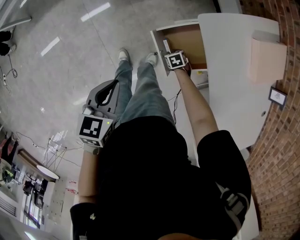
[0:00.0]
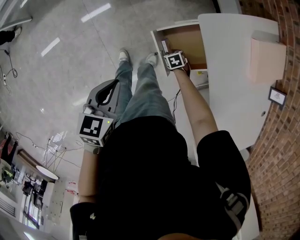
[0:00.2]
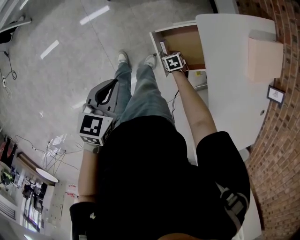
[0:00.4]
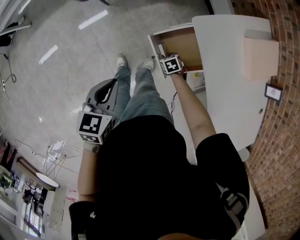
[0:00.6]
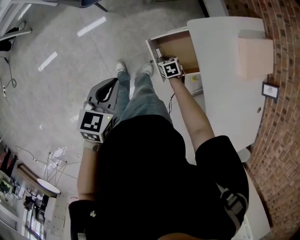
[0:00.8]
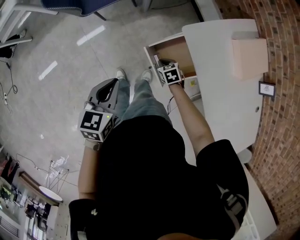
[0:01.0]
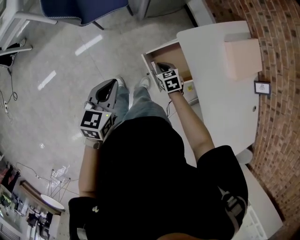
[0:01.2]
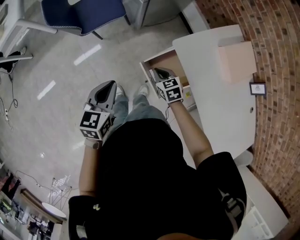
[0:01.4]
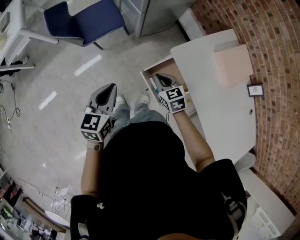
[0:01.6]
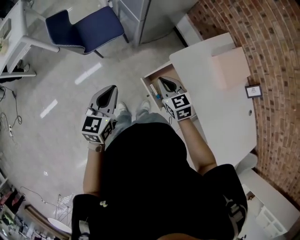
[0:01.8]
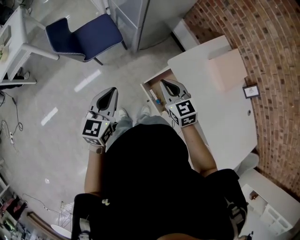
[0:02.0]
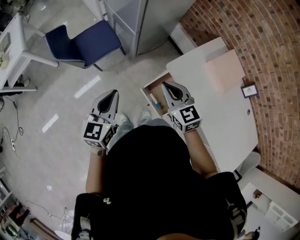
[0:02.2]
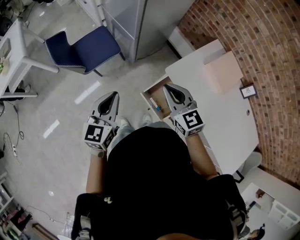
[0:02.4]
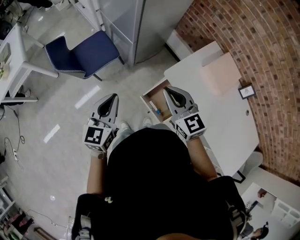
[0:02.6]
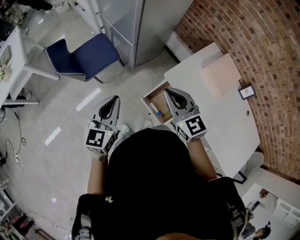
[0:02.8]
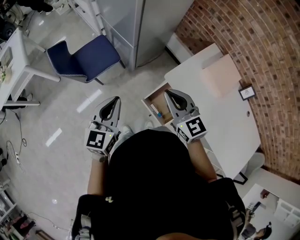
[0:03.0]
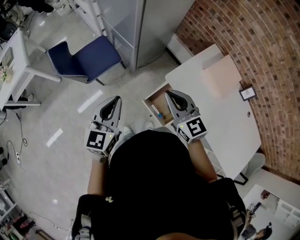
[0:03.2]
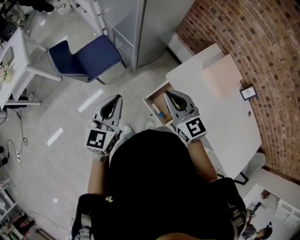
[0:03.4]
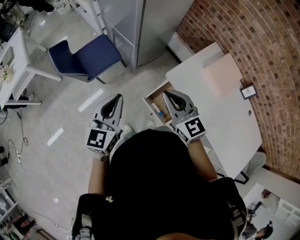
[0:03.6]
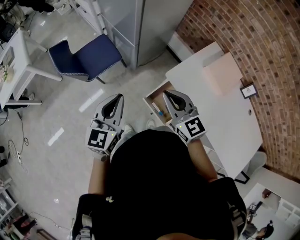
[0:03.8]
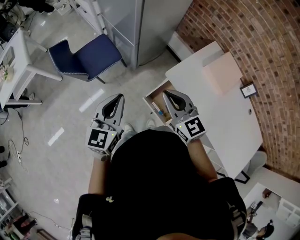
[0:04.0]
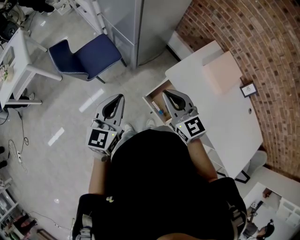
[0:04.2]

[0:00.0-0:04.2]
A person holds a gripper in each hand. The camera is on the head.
0:00.0 to 0:01.4: The left gripper moves upward, some 5 cm. The right gripper travels upward by roughly 30 cm, changes its angle by some 30 degrees, and closes.
0:01.4 to 0:02.8: The right gripper moves upward, some 30 cm, and points its fingers roughly 30 degrees further upward. Meanwhile the left gripper goes roughly 15 cm upward and forward, and changes its angle by some 20 degrees.
0:02.8 to 0:04.2: The grippers make only small movements.

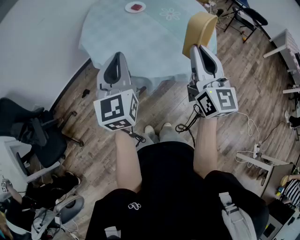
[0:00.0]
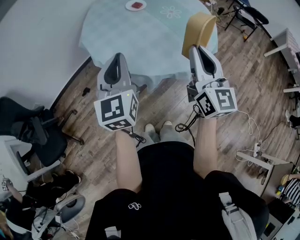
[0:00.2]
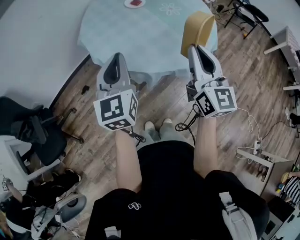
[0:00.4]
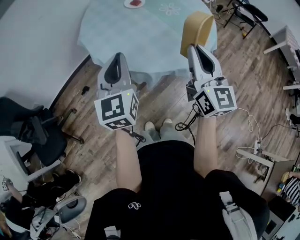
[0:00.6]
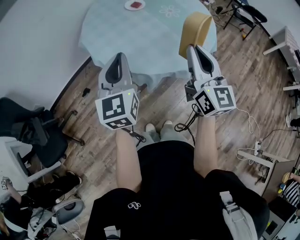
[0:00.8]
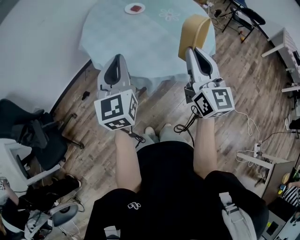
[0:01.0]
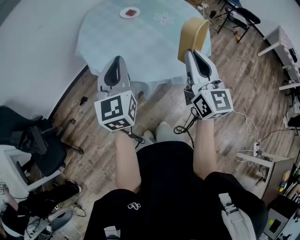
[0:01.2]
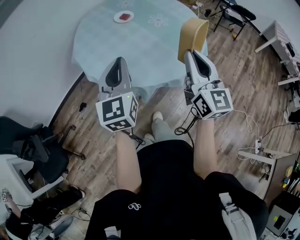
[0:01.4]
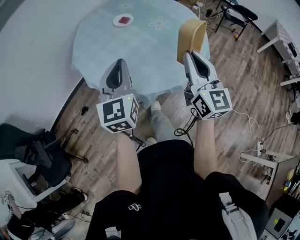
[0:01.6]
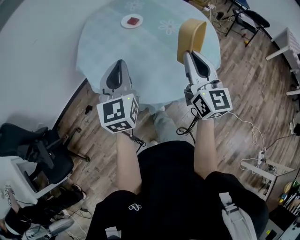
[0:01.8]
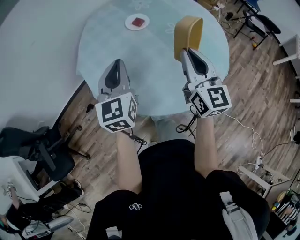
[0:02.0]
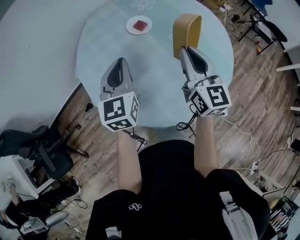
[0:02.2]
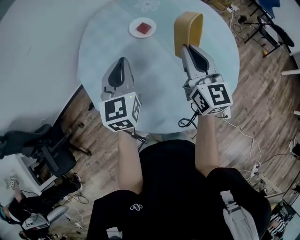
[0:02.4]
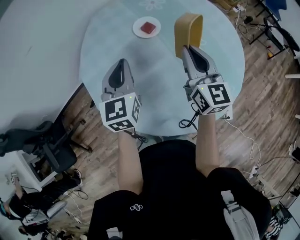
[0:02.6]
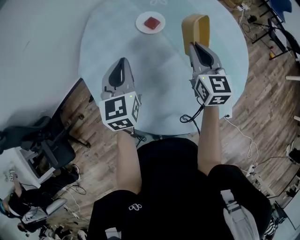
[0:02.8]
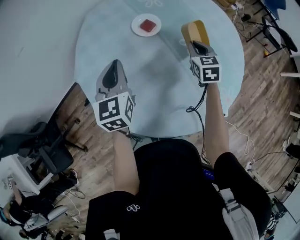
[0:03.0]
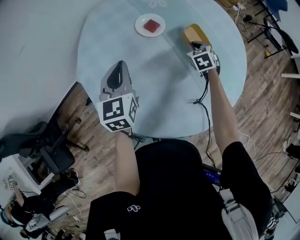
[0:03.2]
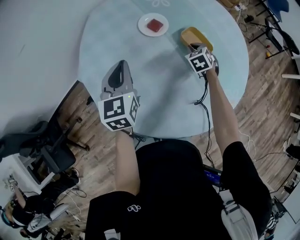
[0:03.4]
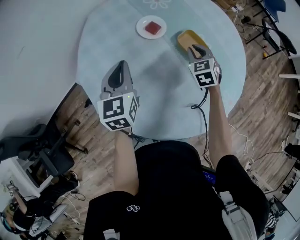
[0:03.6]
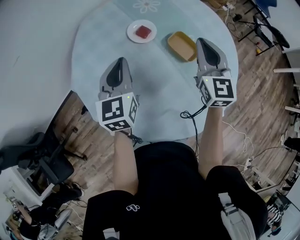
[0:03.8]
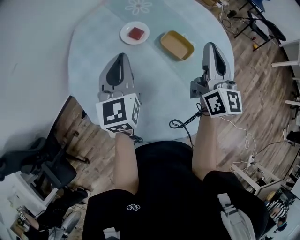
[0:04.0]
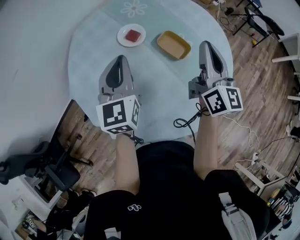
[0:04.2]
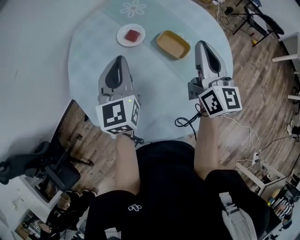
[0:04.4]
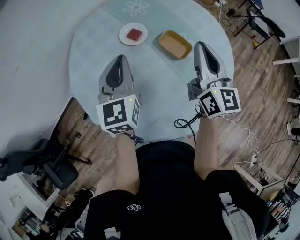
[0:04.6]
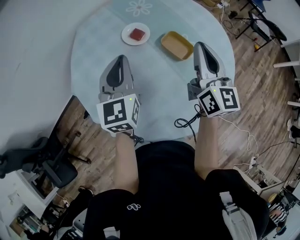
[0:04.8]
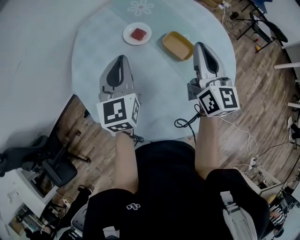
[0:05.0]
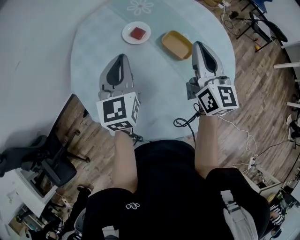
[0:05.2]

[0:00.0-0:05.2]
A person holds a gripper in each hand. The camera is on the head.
0:00.0 to 0:01.8: Both grippers move forward, approximately 15 cm.
0:01.8 to 0:03.4: The left gripper is displaced forward by about 30 cm. The right gripper travels forward and downward by about 50 cm, and angles its fingers downward, by roughly 60 degrees.
0:03.4 to 0:05.2: The left gripper heads upward and to the right, covering roughly 10 cm. The right gripper is displaced upward by some 30 cm, and tilts its fingers approximately 60 degrees upward.

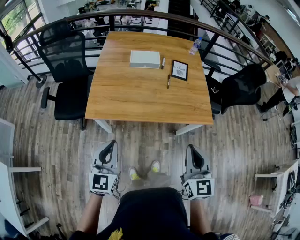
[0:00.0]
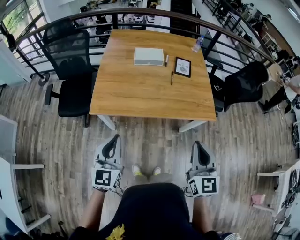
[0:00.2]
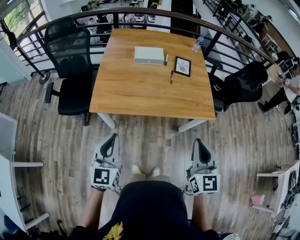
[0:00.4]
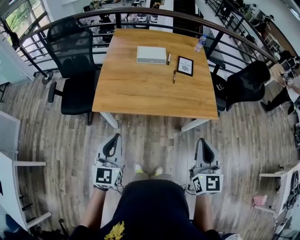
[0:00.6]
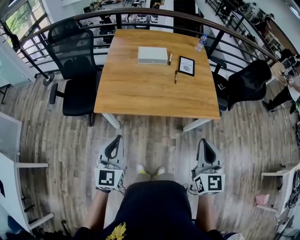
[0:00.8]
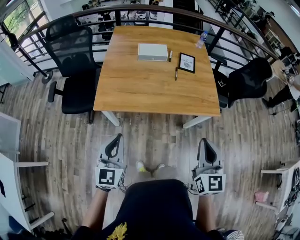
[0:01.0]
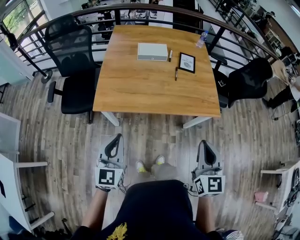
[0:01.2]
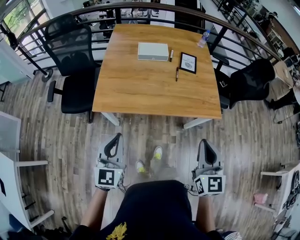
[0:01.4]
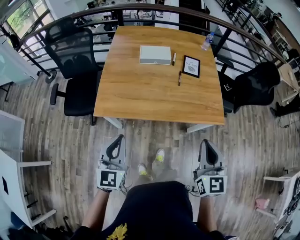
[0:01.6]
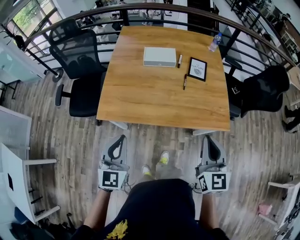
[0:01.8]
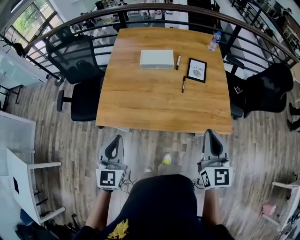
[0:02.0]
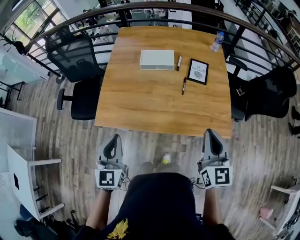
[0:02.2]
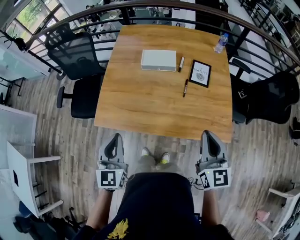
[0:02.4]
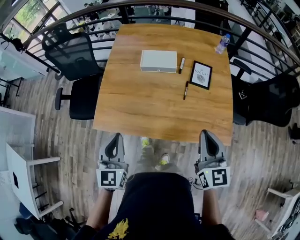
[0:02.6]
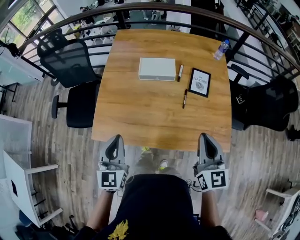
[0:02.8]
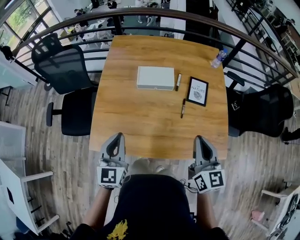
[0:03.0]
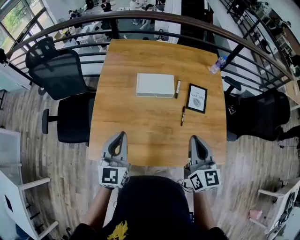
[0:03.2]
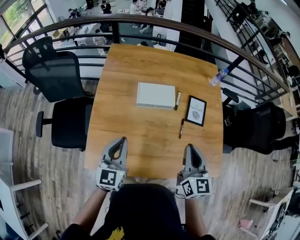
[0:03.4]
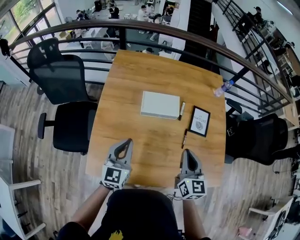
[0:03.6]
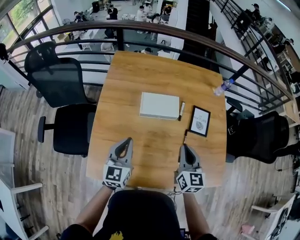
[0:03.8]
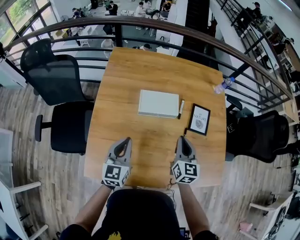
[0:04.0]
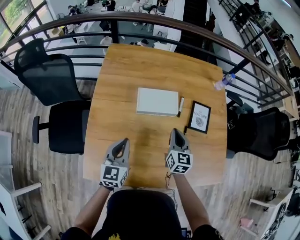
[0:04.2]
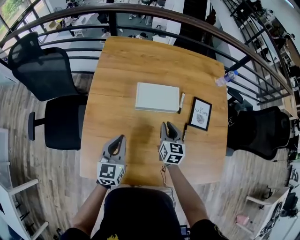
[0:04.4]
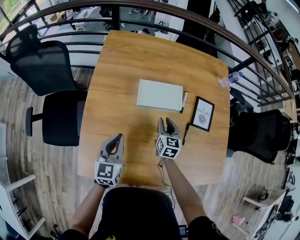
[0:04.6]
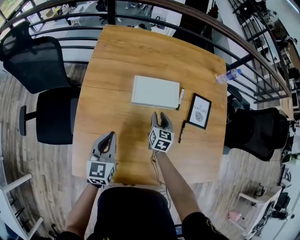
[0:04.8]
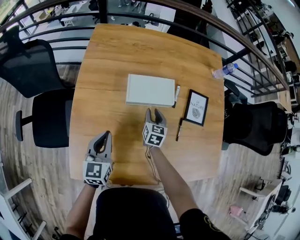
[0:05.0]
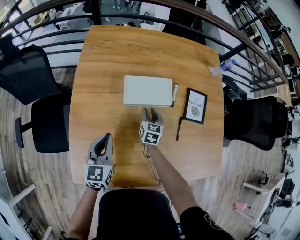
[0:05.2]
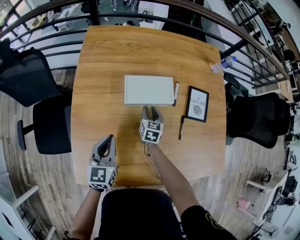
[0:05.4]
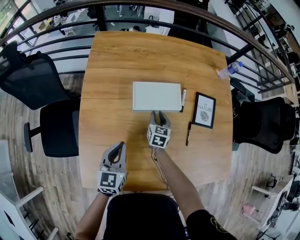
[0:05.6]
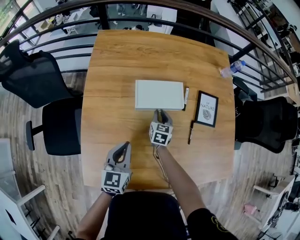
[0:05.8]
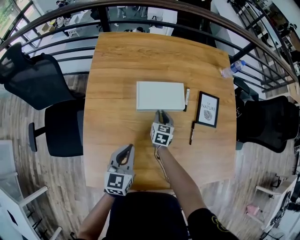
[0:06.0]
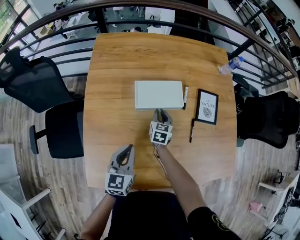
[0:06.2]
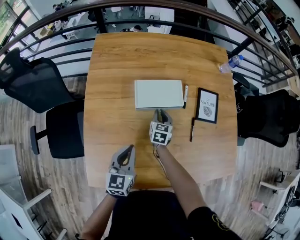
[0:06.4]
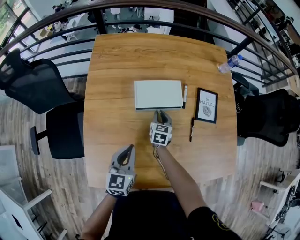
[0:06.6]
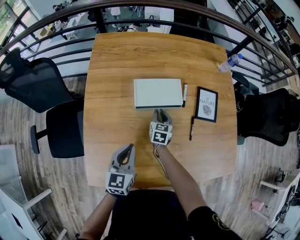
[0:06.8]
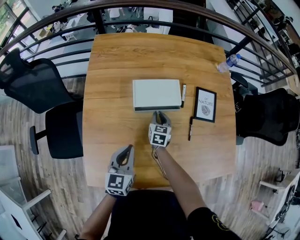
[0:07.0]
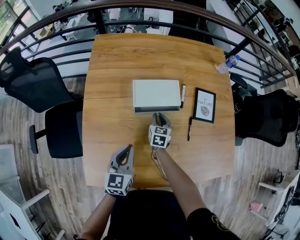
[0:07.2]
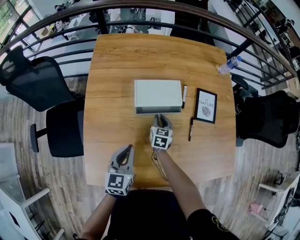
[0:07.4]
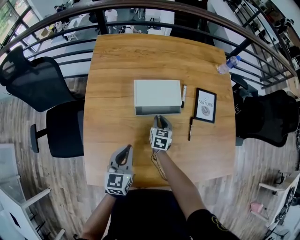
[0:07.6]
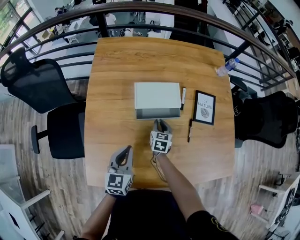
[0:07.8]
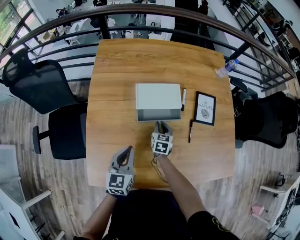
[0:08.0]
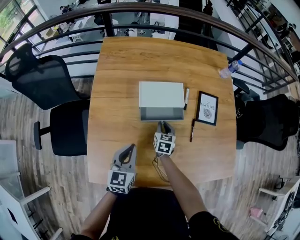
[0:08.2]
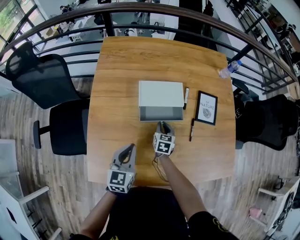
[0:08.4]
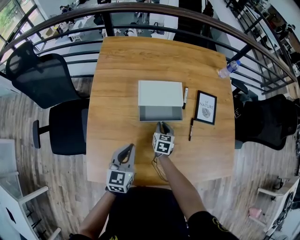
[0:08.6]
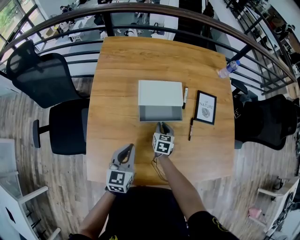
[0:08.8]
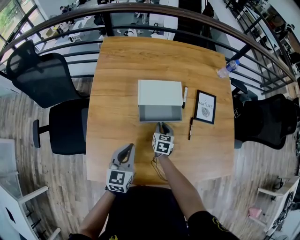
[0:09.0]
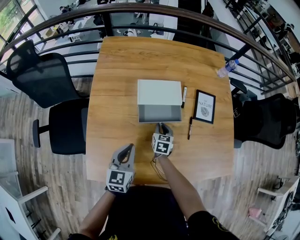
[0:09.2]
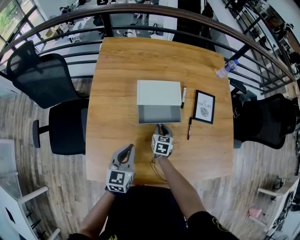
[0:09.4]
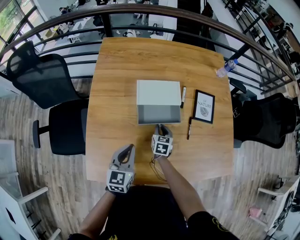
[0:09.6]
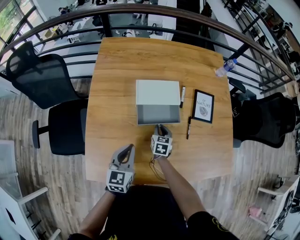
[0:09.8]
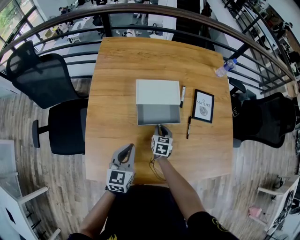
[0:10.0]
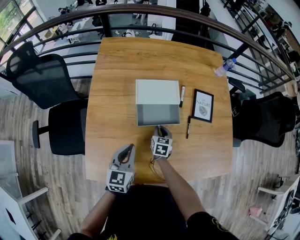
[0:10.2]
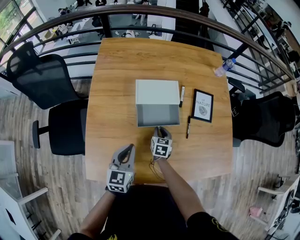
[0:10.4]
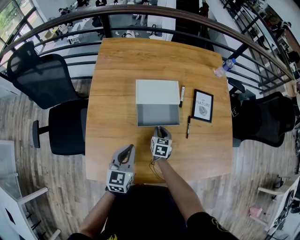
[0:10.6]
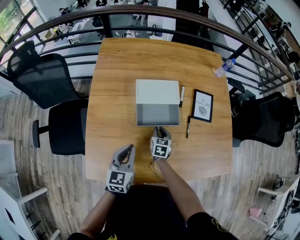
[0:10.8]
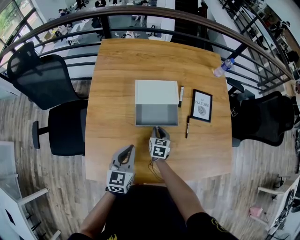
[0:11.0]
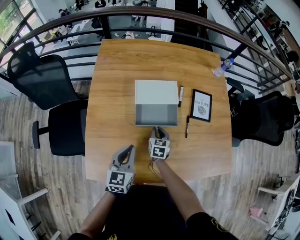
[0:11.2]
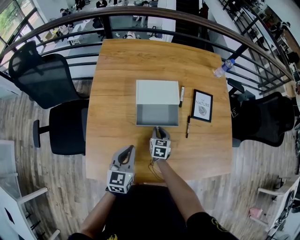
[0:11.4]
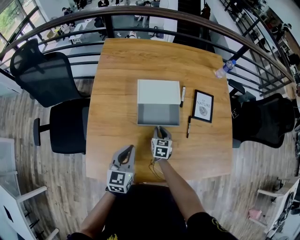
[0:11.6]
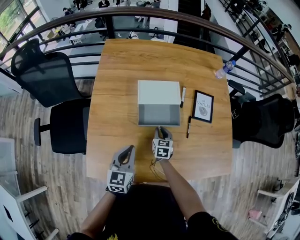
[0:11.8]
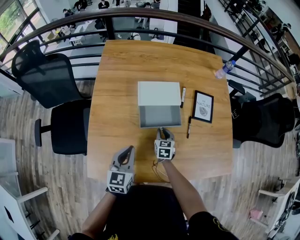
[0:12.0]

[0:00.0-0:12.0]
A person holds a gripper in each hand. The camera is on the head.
0:00.0 to 0:01.6: The grippers make only small movements.
0:01.6 to 0:03.0: The grippers both shift forward by some 30 cm.
0:03.0 to 0:04.4: The left gripper is displaced forward and downward by approximately 25 cm. The right gripper shifts roughly 40 cm forward, downward and to the left.
0:04.4 to 0:06.0: The right gripper travels downward and forward by roughly 15 cm, while the left gripper shifts by roughly 5 cm.
0:06.0 to 0:07.6: The grippers stay close to where they were, moving slightly.
0:07.6 to 0:09.0: The grippers move only a little.
0:09.0 to 0:12.0: The grippers stay close to where they were, moving slightly.

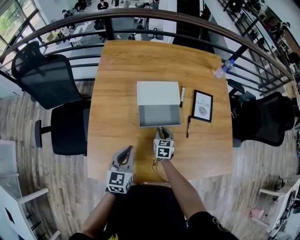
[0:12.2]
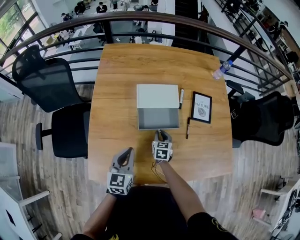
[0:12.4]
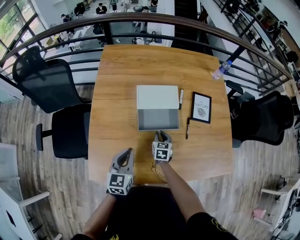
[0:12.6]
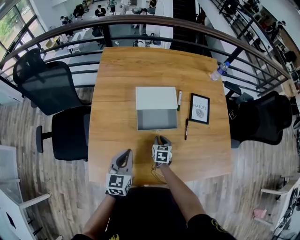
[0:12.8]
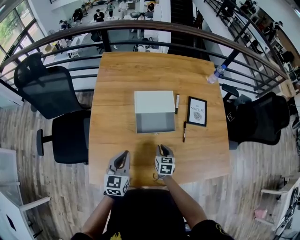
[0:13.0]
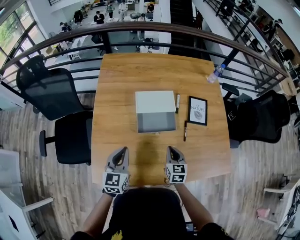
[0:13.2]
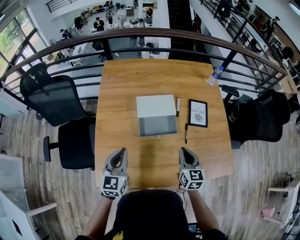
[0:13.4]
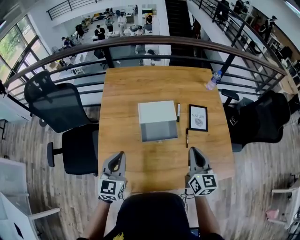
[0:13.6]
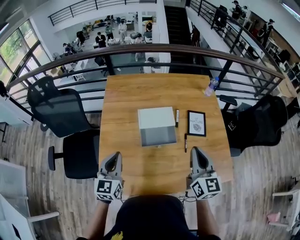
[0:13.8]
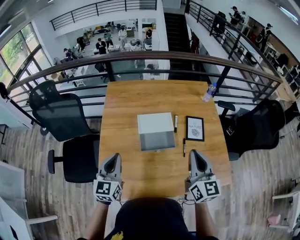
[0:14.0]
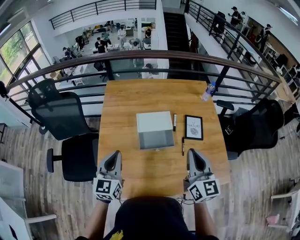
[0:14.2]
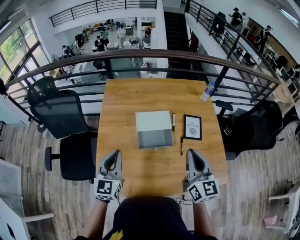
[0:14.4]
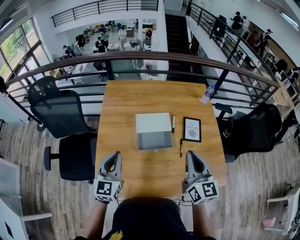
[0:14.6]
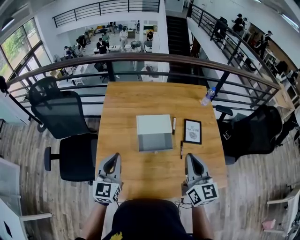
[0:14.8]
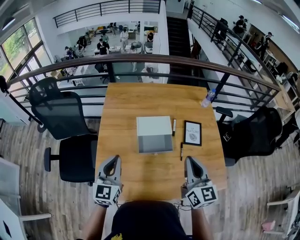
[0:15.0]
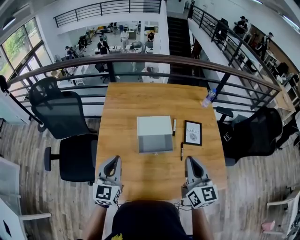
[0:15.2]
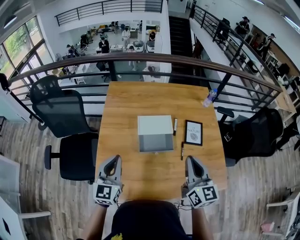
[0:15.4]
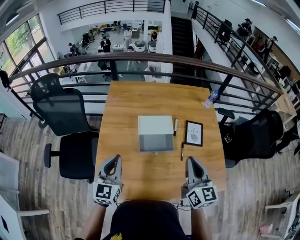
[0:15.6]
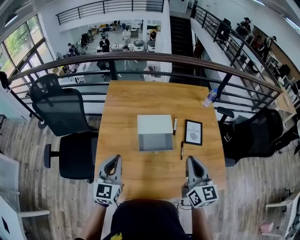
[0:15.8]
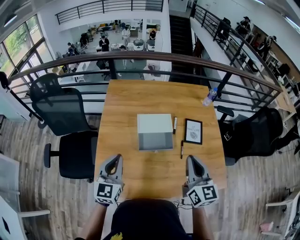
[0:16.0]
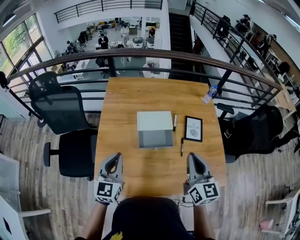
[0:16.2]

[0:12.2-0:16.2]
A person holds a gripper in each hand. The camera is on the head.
0:12.2 to 0:13.6: The right gripper heads upward, covering some 30 cm, and changes its angle by approximately 30 degrees. Meanwhile the left gripper moves upward, about 15 cm.
0:13.6 to 0:14.8: The right gripper heads upward, covering about 10 cm; the left gripper shifts some 5 cm upward.
0:14.8 to 0:16.2: The grippers move only a little.
